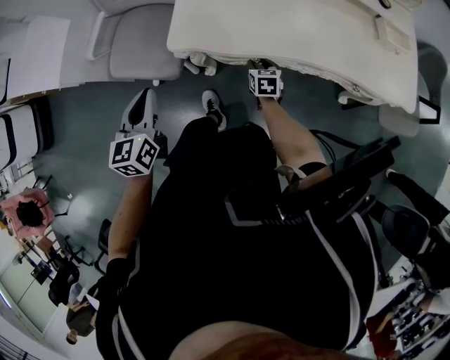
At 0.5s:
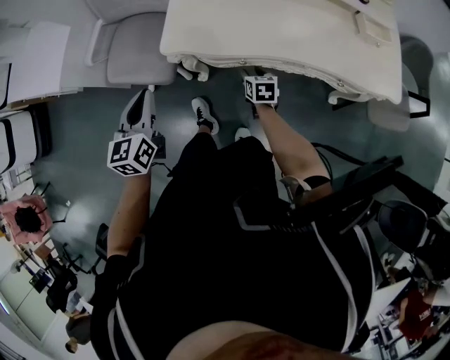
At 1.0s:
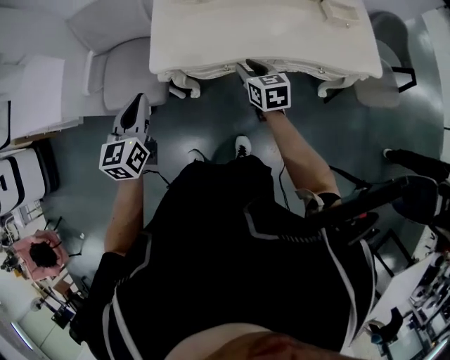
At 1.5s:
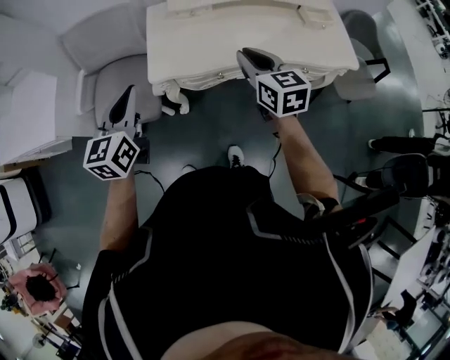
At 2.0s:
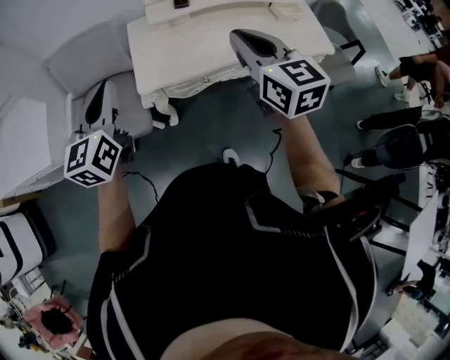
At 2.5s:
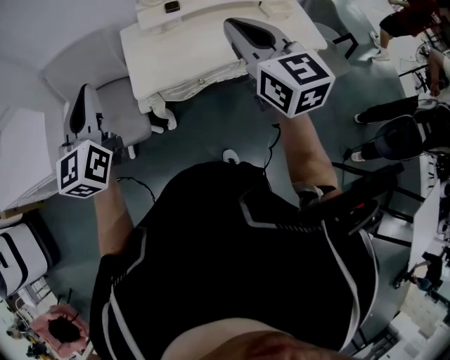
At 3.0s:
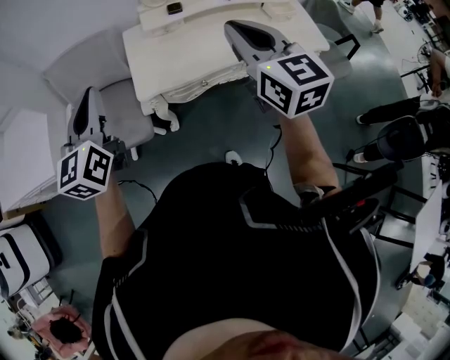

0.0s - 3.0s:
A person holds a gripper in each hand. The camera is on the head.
0.0s - 1.5s: The right gripper goes some 40 cm upward, turns by approximately 30 degrees, and closes up. Meanwhile the left gripper is displaced upward by about 15 cm, and turns by roughly 20 degrees.
1.5s - 3.0s: The left gripper heads upward, covering about 10 cm; the right gripper is displaced upward by about 20 cm.

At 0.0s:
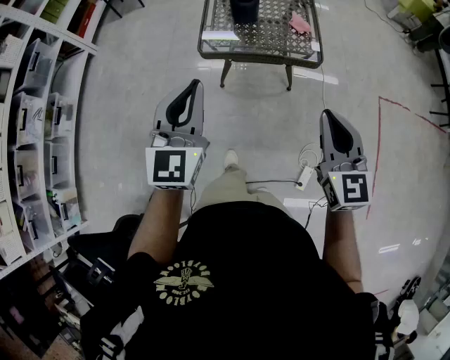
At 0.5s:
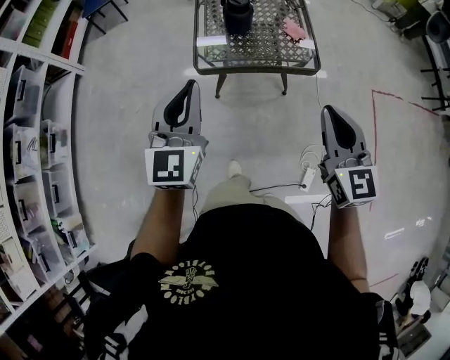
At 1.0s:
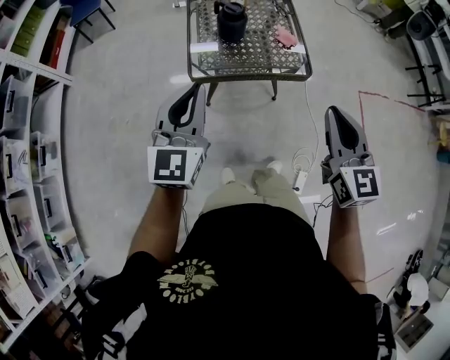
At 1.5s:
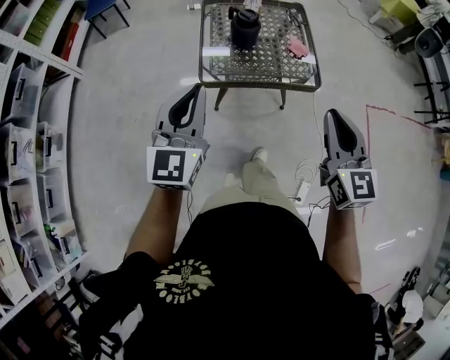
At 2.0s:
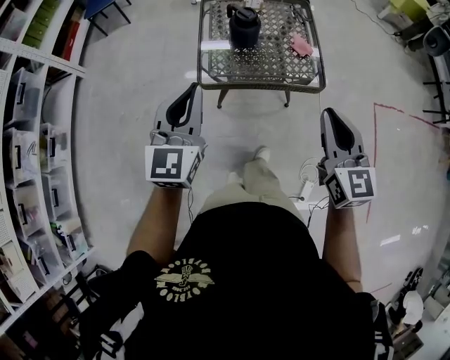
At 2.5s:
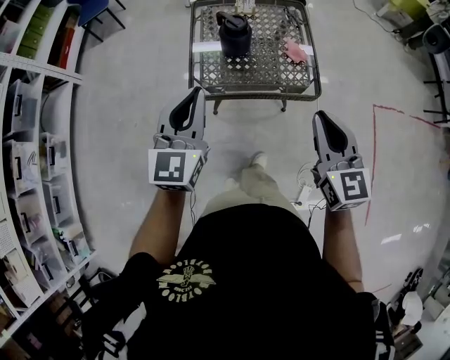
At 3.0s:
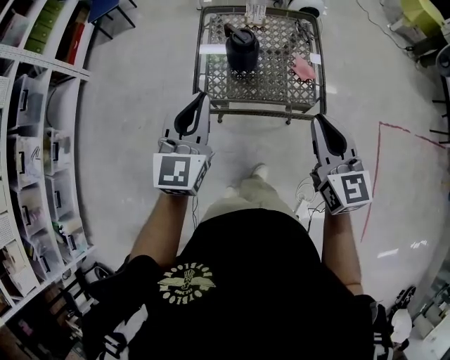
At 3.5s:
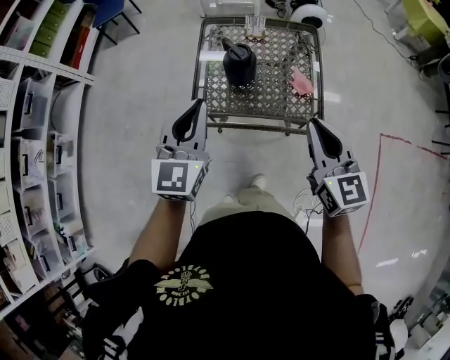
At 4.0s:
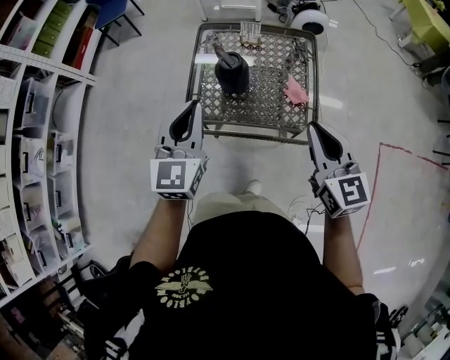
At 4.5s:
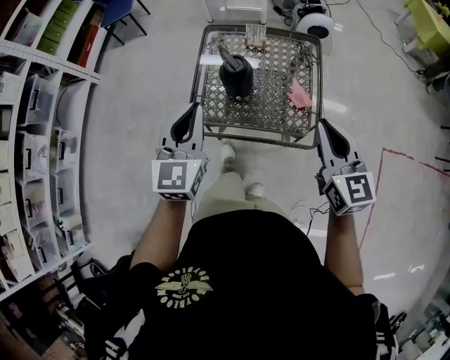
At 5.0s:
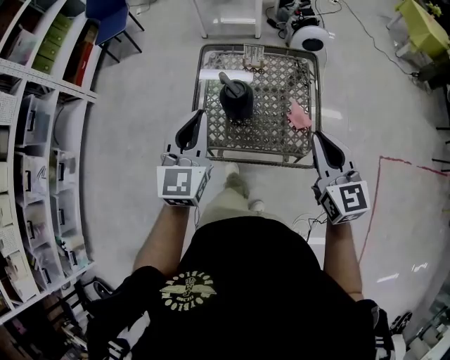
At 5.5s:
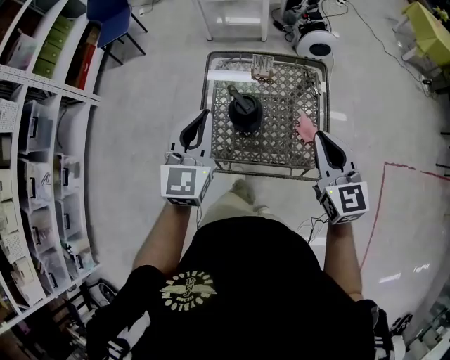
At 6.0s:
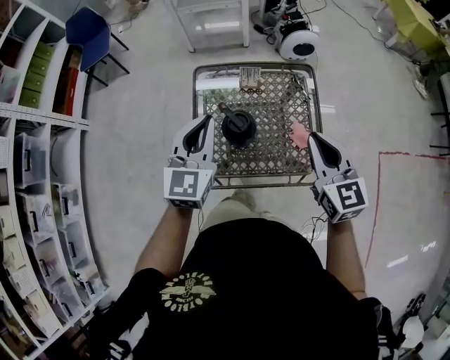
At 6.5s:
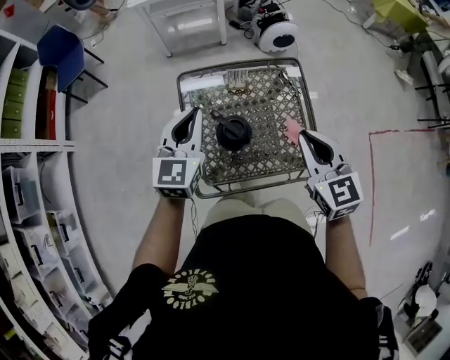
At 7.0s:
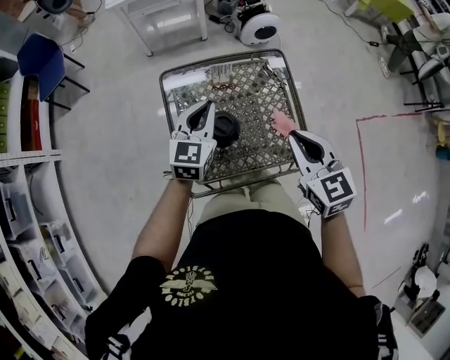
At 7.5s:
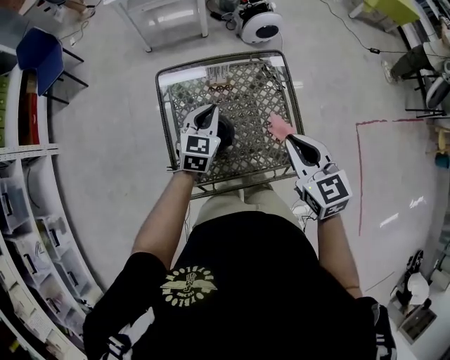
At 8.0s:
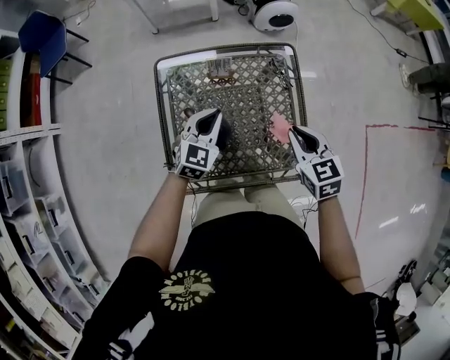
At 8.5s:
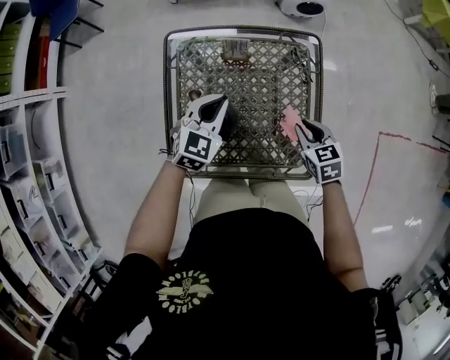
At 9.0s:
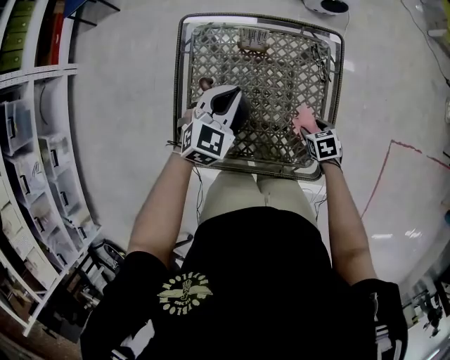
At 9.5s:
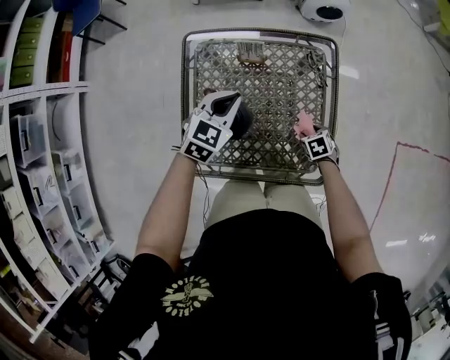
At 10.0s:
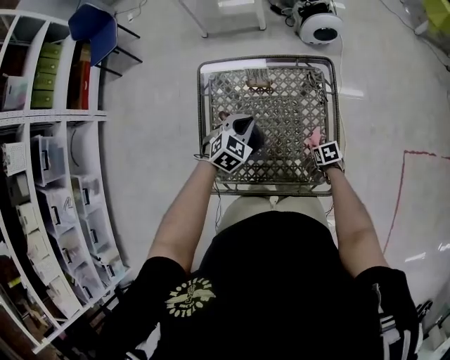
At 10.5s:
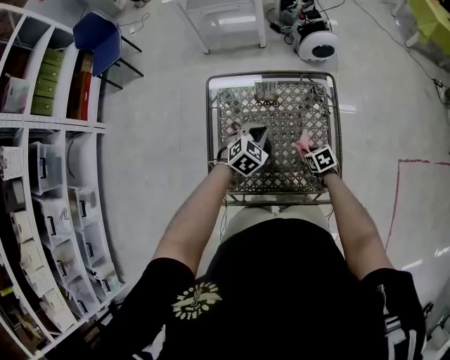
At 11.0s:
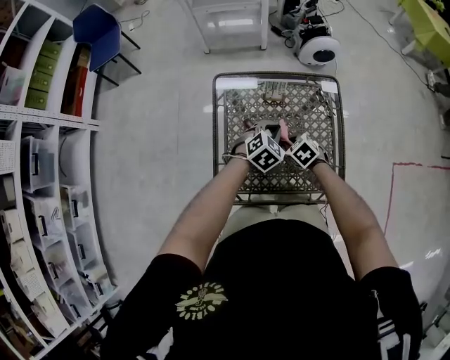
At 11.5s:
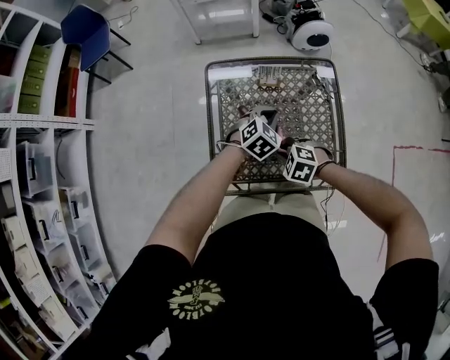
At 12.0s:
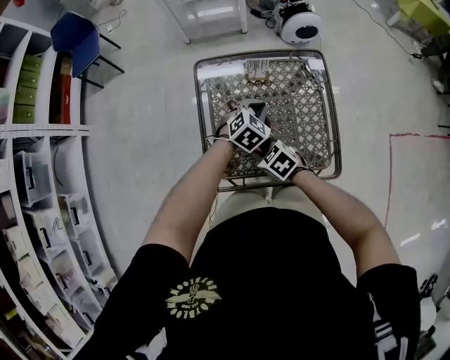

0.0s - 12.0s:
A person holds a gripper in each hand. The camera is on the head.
0.0s - 2.0s: Both grippers travel together forward, some 15 cm.
2.0s - 4.0s: The two grippers go some 25 cm forward and to the right.
4.0s - 6.0s: Both grippers move forward, about 20 cm.
6.0s - 8.0s: The right gripper moves downward and forward, about 20 cm, and swivels roughly 20 degrees. The left gripper shifts some 25 cm downward, forward and to the right, and turns by roughly 30 degrees.
8.0s - 10.0s: The right gripper goes approximately 30 cm downward, points its fingers about 30 degrees further downward, and opens, then closes once more.
10.0s - 12.0s: The right gripper heads to the left and upward, covering approximately 35 cm, and turns by about 40 degrees.

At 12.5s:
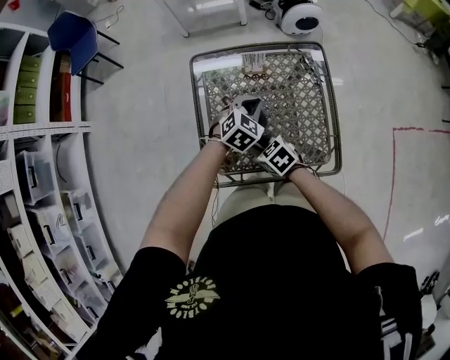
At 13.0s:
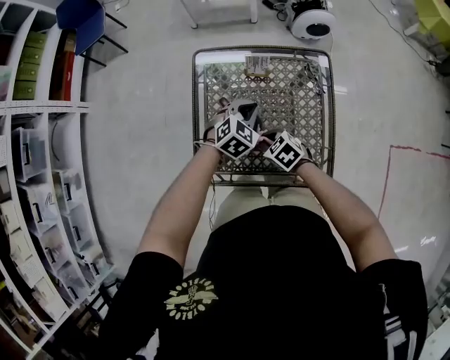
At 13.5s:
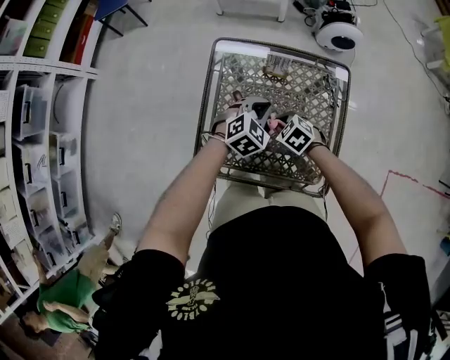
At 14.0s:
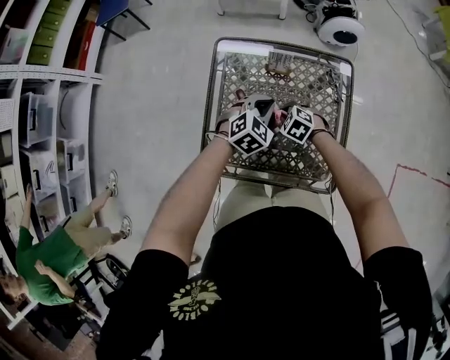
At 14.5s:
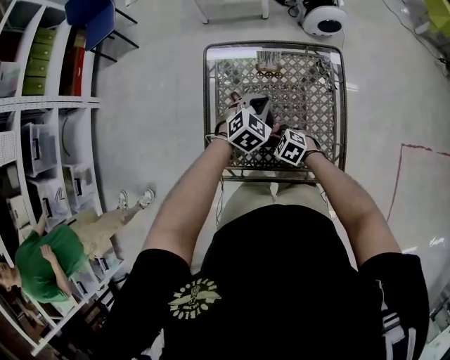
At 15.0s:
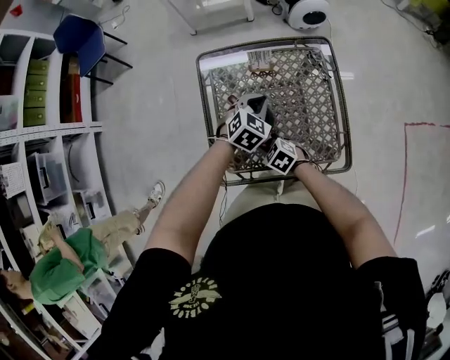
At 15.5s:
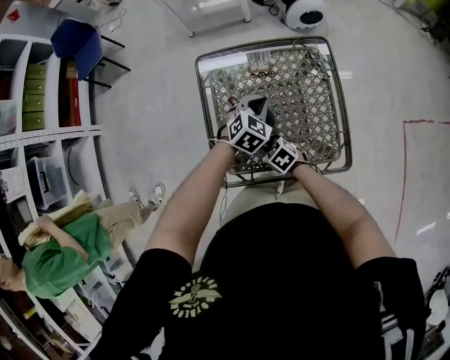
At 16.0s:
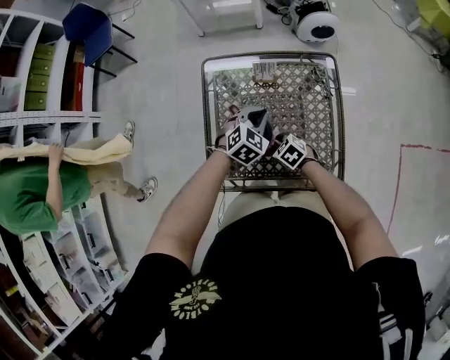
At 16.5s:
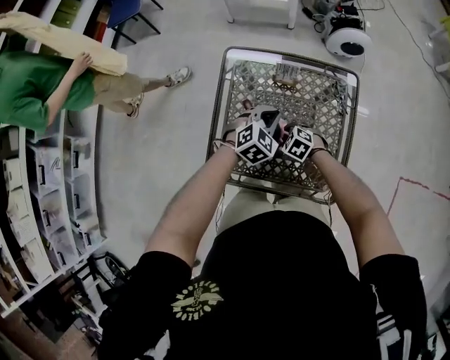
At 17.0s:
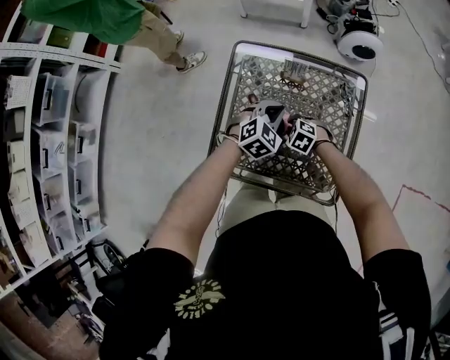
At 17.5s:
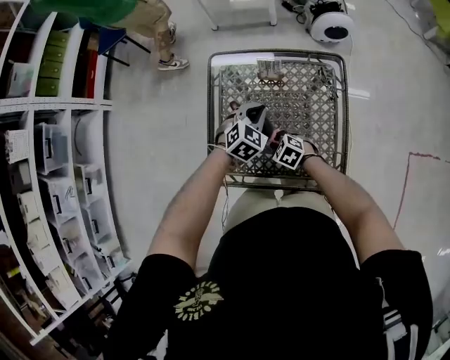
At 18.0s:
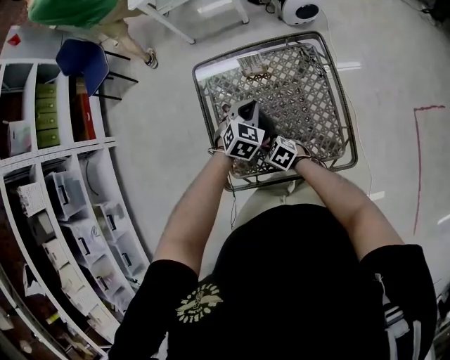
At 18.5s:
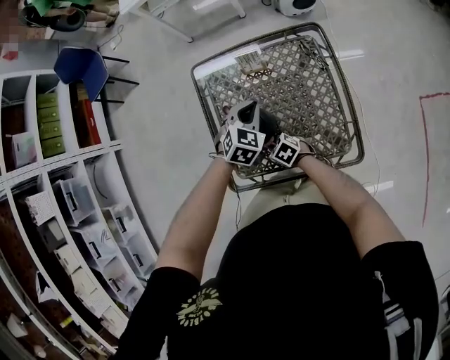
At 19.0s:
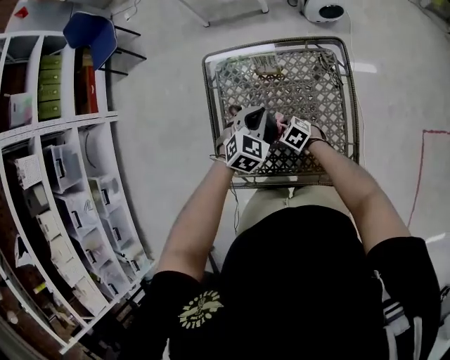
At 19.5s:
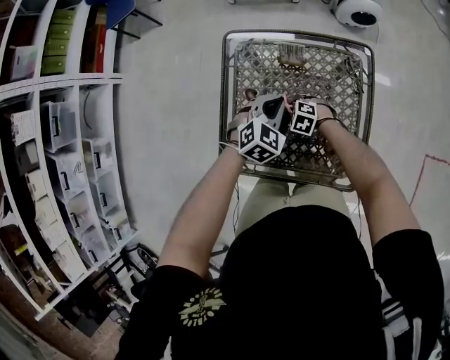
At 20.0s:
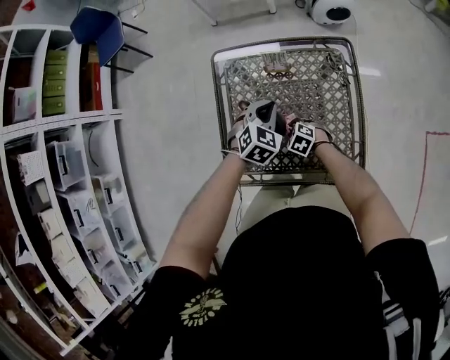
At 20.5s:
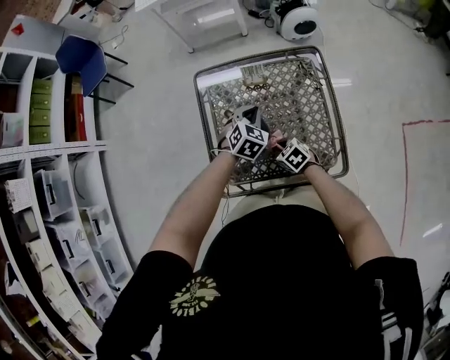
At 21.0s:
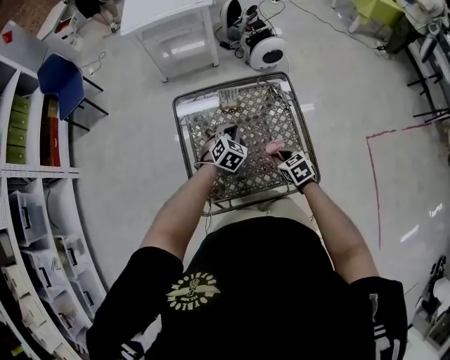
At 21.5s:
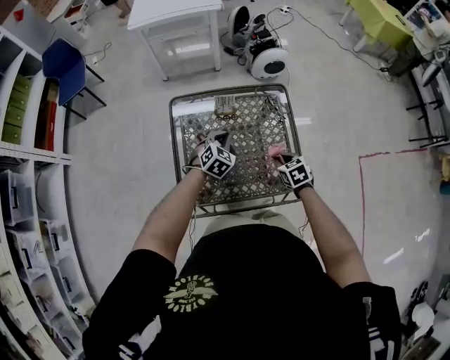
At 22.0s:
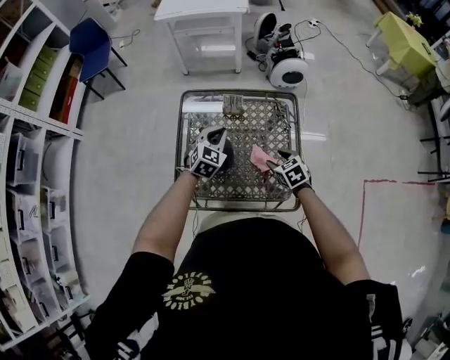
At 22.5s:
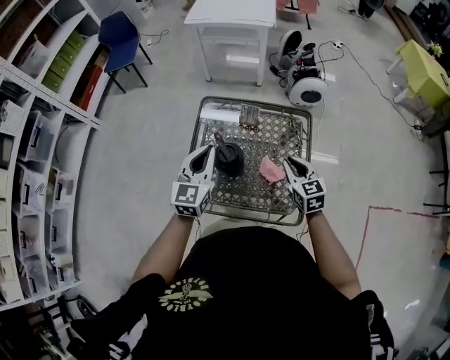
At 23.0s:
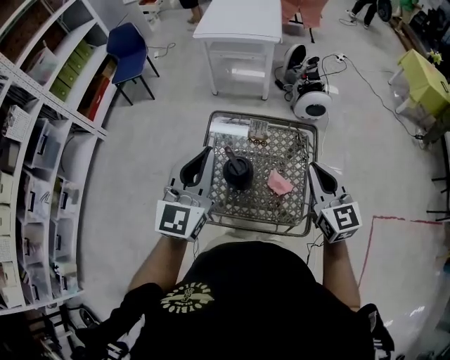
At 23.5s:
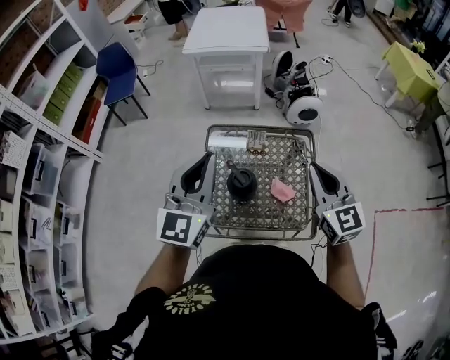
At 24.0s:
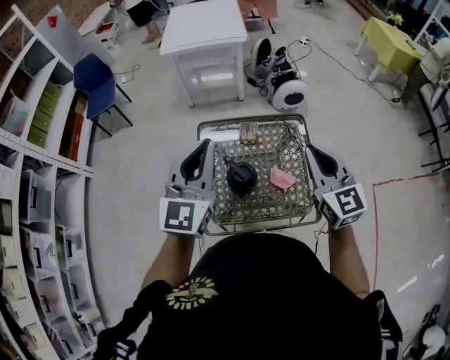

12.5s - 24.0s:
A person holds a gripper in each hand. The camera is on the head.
12.5s - 14.5s: The right gripper moves downward and to the right, some 10 cm, and swivels some 30 degrees.
14.5s - 16.5s: The right gripper is displaced forward by some 5 cm.
16.5s - 18.5s: The right gripper moves to the left and backward, about 10 cm, and turns by about 30 degrees.
18.5s - 20.0s: The right gripper travels to the right by about 5 cm, and changes its angle by approximately 20 degrees.
20.0s - 22.0s: The left gripper is displaced upward by some 5 cm, while the right gripper goes roughly 20 cm upward and to the right, rotates approximately 30 degrees, and opens its fingers.
22.0s - 24.0s: The grippers both shift upward by roughly 35 cm. The left gripper points its fingers roughly 40 degrees further upward. Meanwhile the right gripper angles its fingers upward, by roughly 40 degrees, and closes its fingers.
